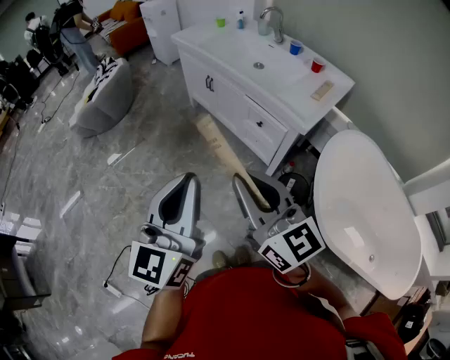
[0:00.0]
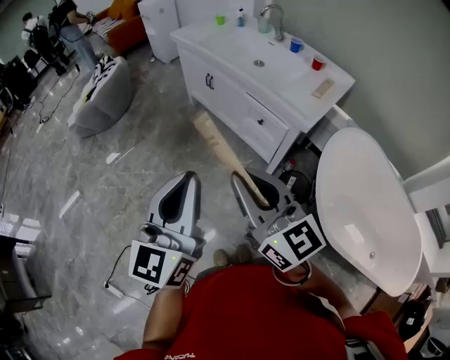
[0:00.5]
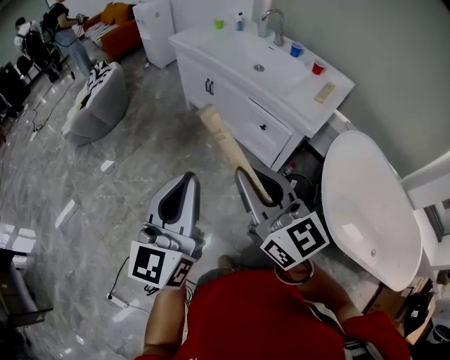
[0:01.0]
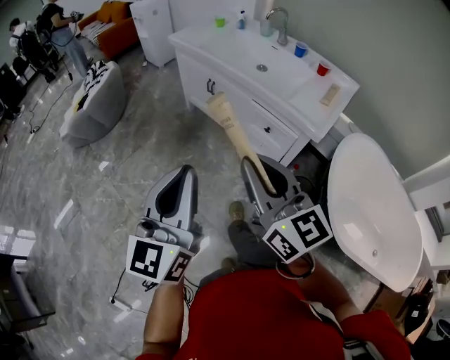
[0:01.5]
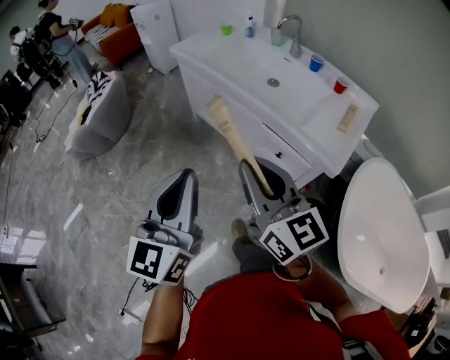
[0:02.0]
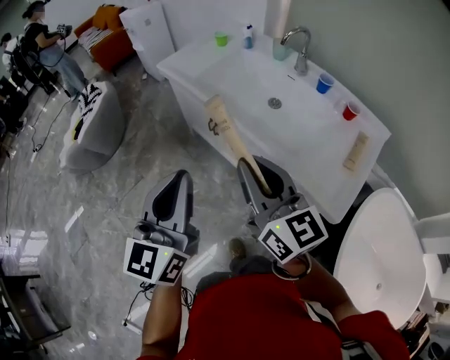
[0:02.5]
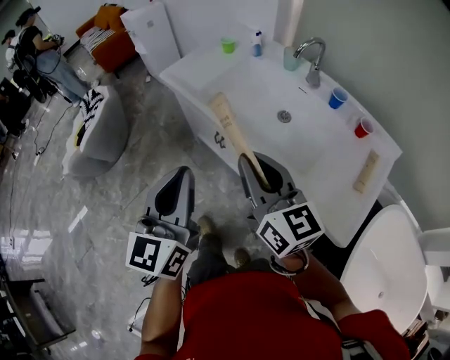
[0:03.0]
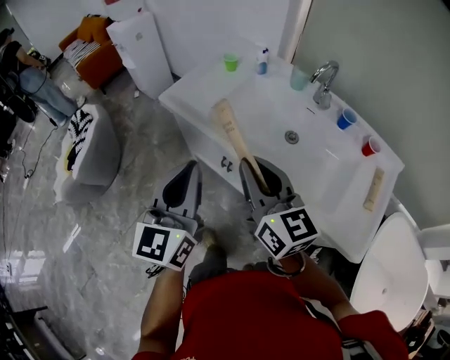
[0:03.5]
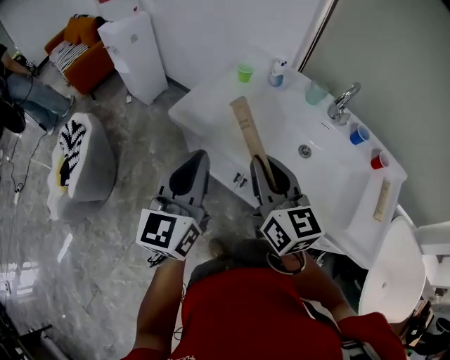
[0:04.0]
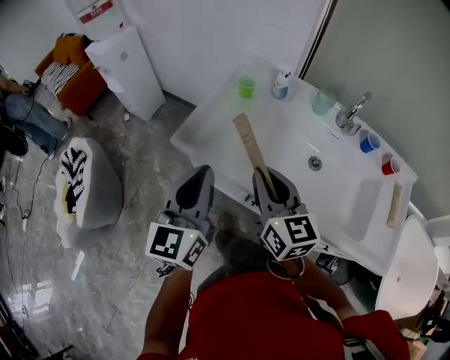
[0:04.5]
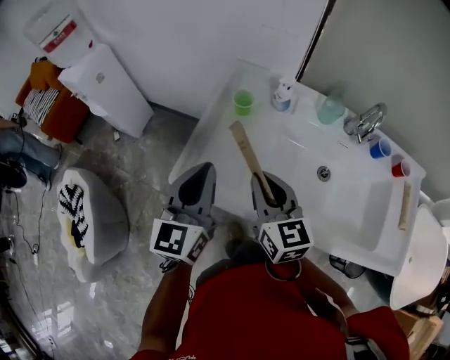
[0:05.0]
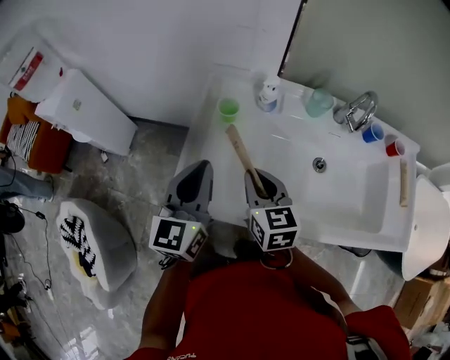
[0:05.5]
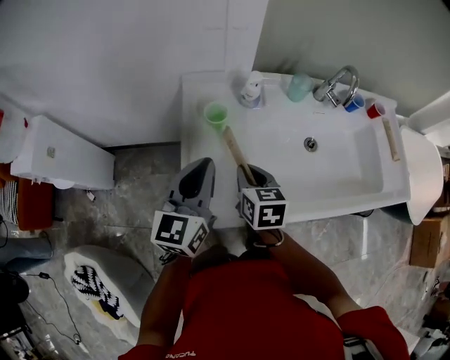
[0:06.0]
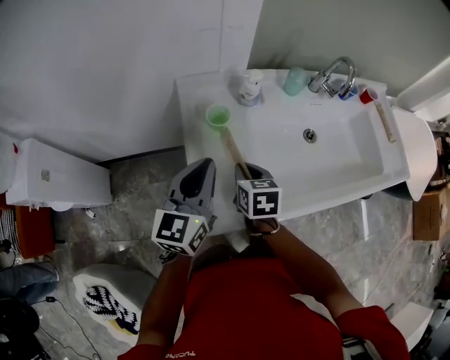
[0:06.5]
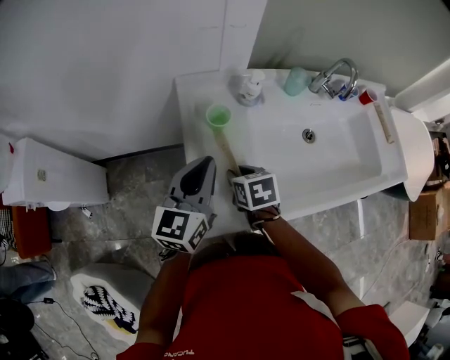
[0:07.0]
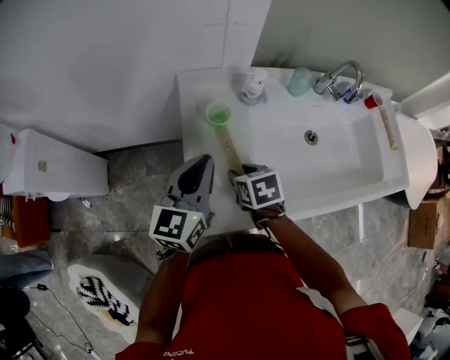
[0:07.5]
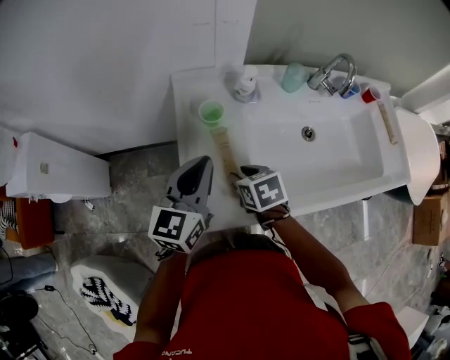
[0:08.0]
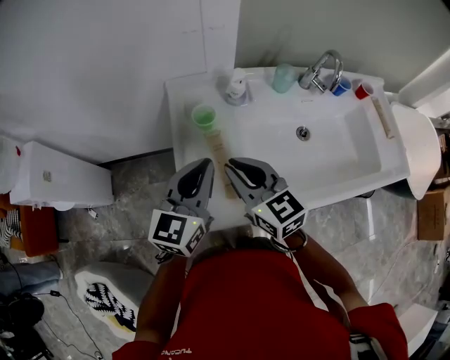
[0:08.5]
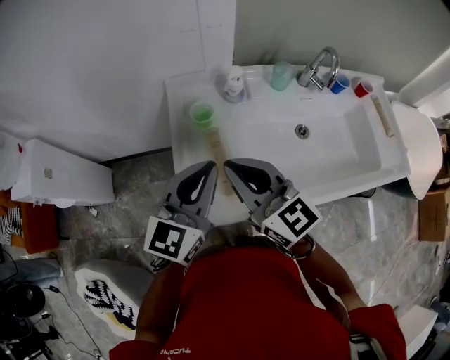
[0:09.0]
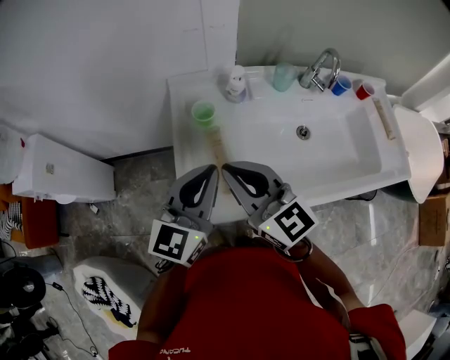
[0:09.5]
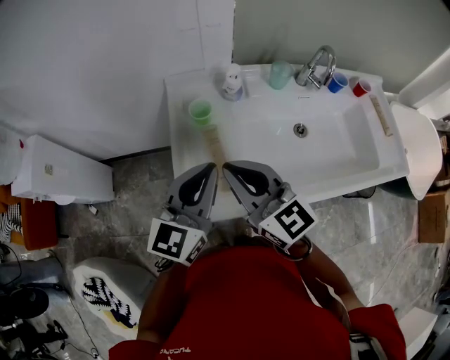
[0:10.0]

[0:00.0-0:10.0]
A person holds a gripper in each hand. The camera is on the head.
0:00.0 to 0:02.0: Both grippers travel together forward, roughly 25 cm.
0:02.0 to 0:04.0: The pair of grippers is taken forward, some 50 cm.
0:04.0 to 0:06.0: The left gripper moves approximately 35 cm, and swivels roughly 40 degrees. Meanwhile the right gripper changes place by about 35 cm, and tilts its fingers approximately 30 degrees downward.
0:06.0 to 0:08.0: The right gripper is displaced downward by some 5 cm, rotates roughly 20 degrees, and opens its fingers.
0:08.0 to 0:10.0: The right gripper is displaced upward by approximately 20 cm, points its fingers some 50 degrees further upward, and closes up. The left gripper shifts roughly 10 cm backward and upward.

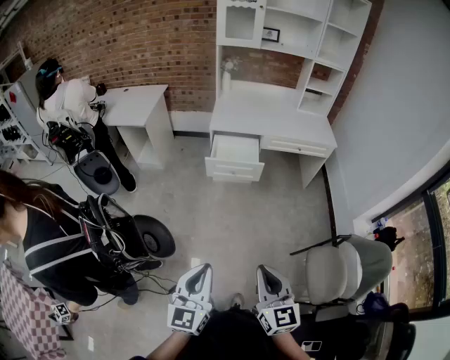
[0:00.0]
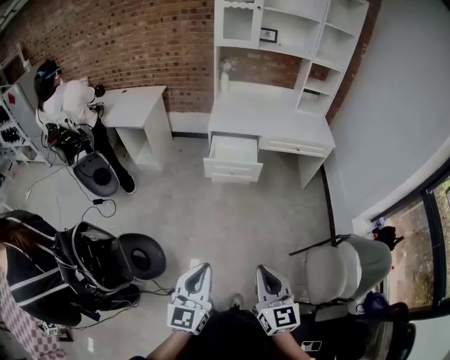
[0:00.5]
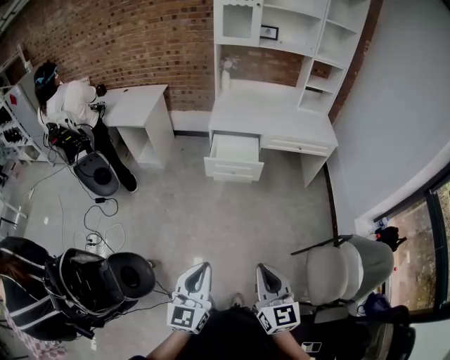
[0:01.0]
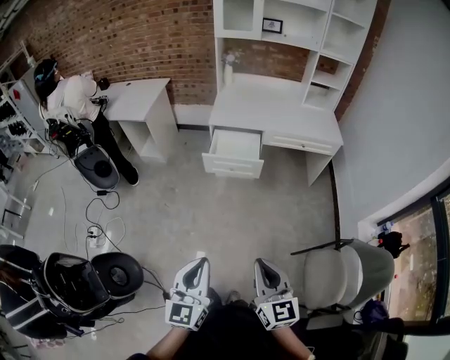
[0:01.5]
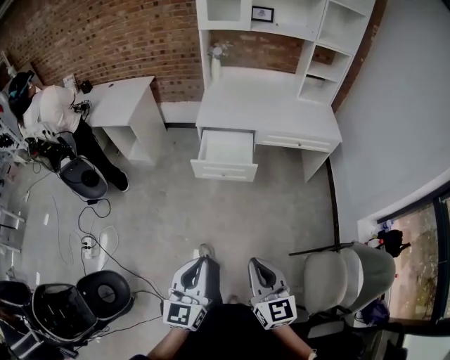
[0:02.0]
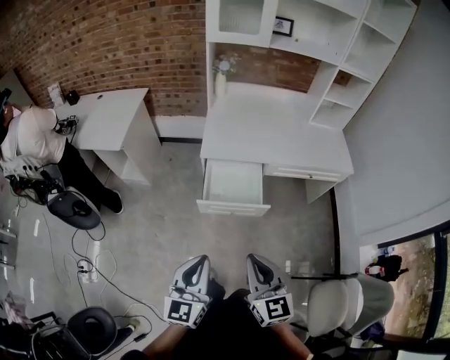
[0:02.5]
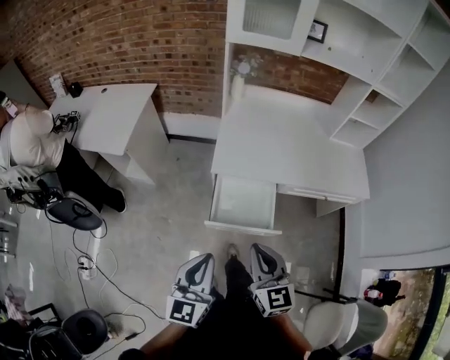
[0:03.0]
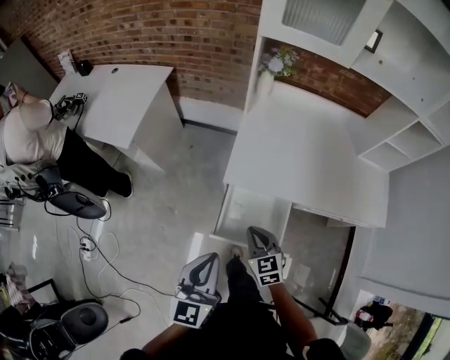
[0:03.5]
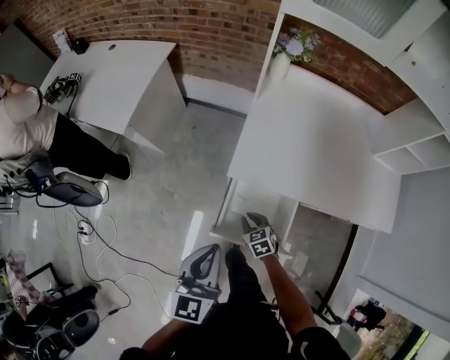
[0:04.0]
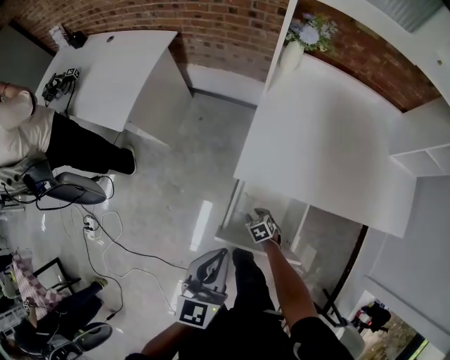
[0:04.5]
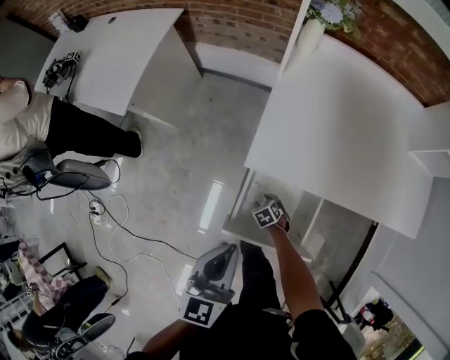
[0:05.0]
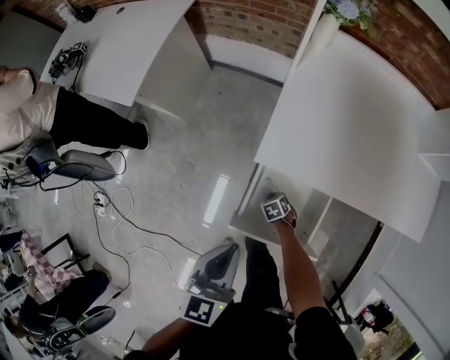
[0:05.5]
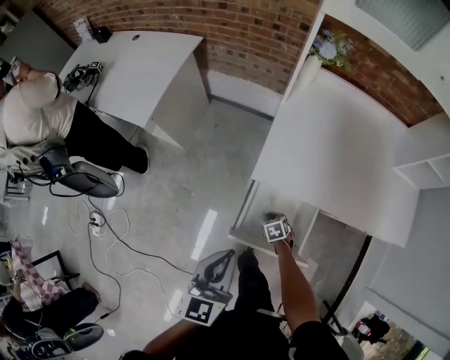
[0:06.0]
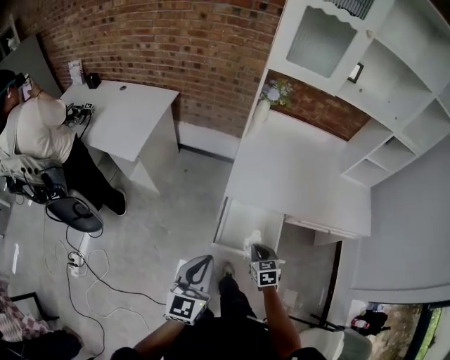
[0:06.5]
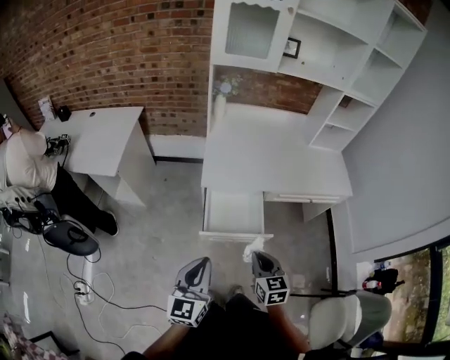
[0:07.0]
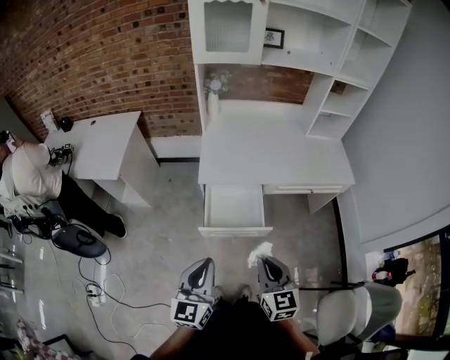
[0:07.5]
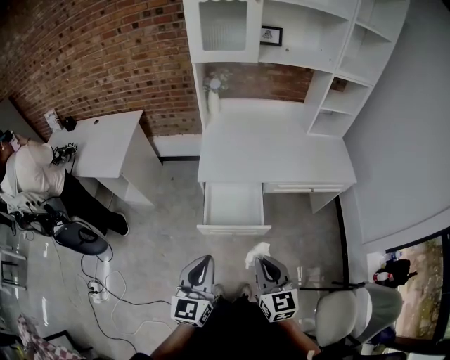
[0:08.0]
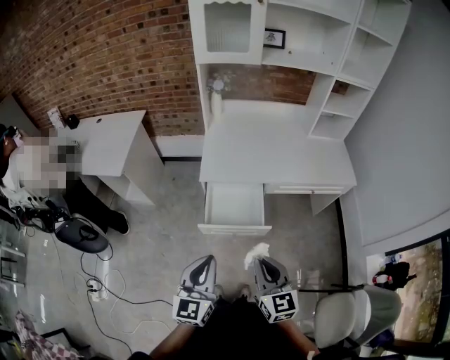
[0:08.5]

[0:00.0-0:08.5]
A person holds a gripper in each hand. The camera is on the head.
0:00.0 to 0:02.0: The left gripper travels forward and to the right by approximately 15 cm, while the right gripper goes about 15 cm forward.
0:02.0 to 0:04.0: The two grippers travel together, forward, roughly 70 cm. The right gripper heads downward, covering some 35 cm, and angles its fingers downward, by roughly 40 degrees.
0:04.0 to 0:06.5: The left gripper goes downward and returns, about 10 cm each way; the right gripper goes roughly 15 cm upward, swivels approximately 20 degrees, and opens, then closes once more.
0:06.5 to 0:08.5: The right gripper goes about 35 cm upward, backward and to the right, and tilts its fingers some 30 degrees upward. The left gripper heads backward and to the right, covering approximately 20 cm.

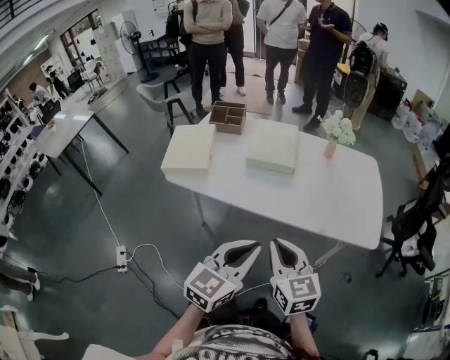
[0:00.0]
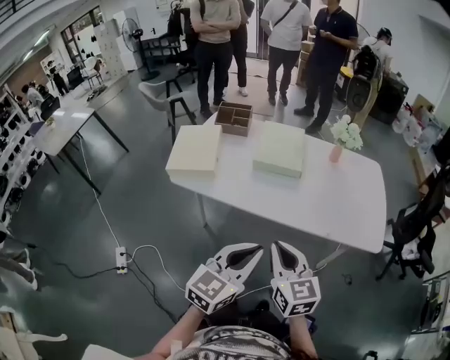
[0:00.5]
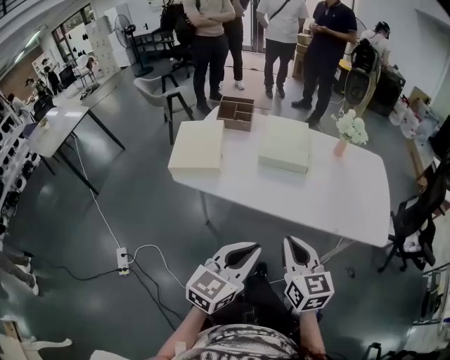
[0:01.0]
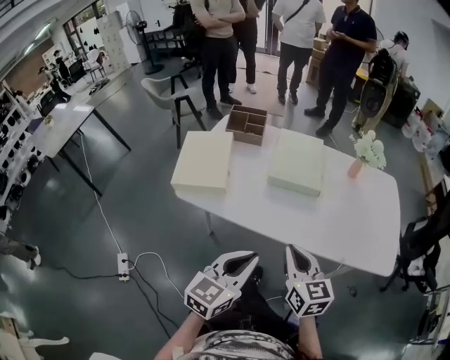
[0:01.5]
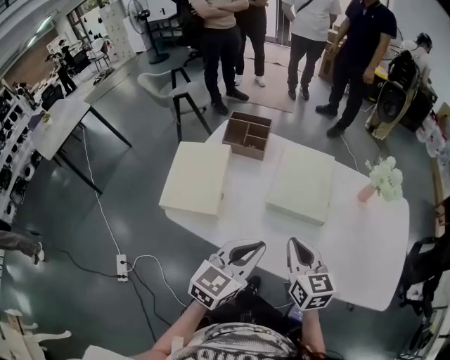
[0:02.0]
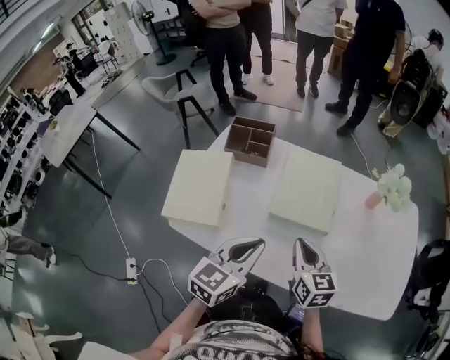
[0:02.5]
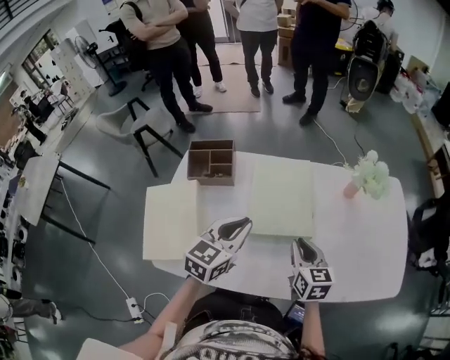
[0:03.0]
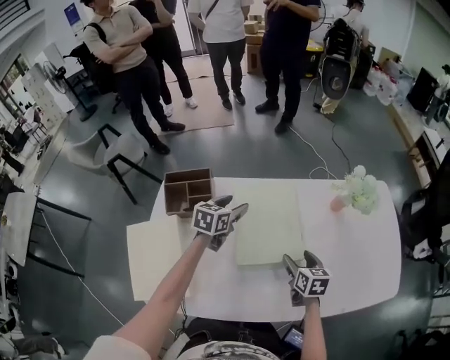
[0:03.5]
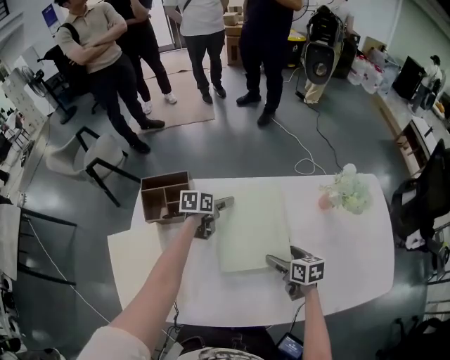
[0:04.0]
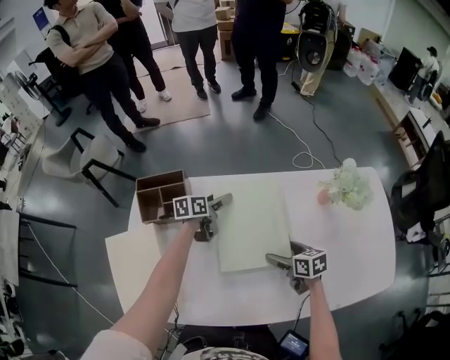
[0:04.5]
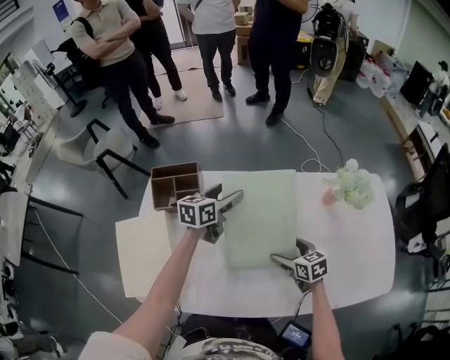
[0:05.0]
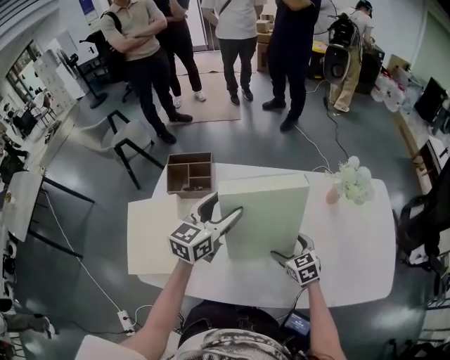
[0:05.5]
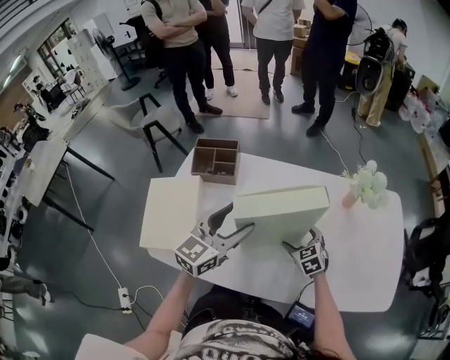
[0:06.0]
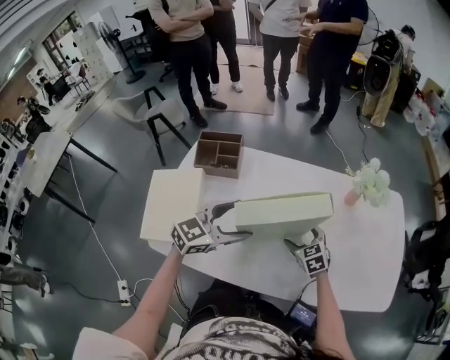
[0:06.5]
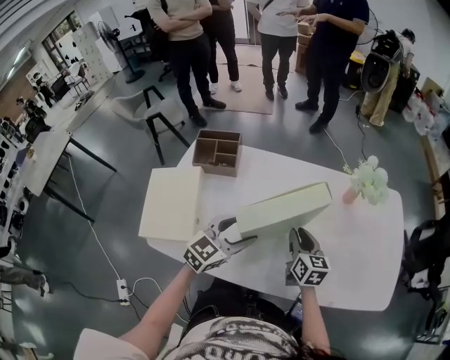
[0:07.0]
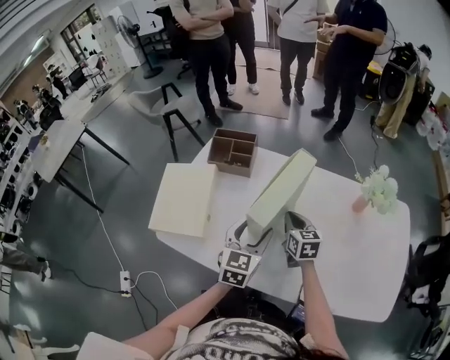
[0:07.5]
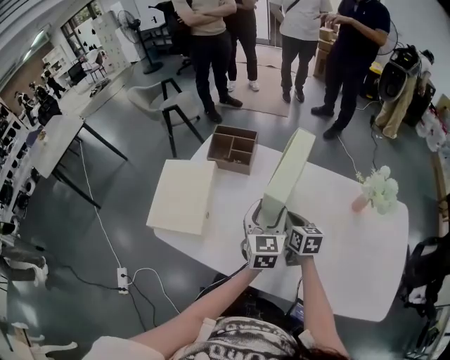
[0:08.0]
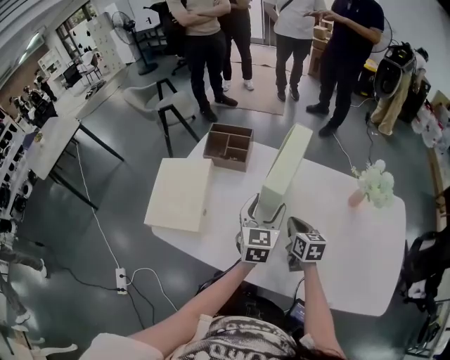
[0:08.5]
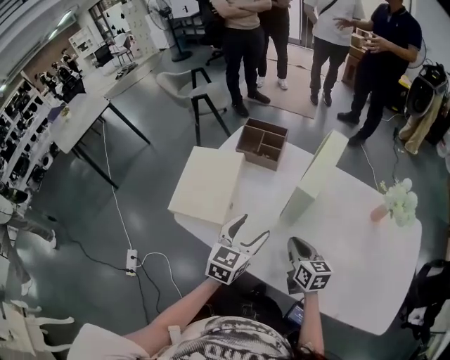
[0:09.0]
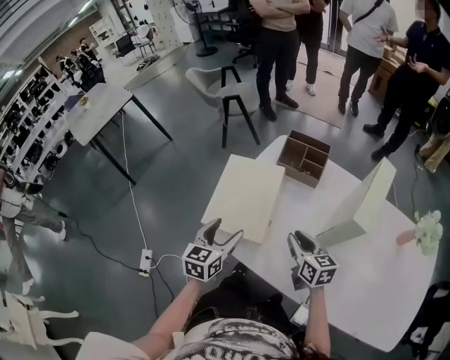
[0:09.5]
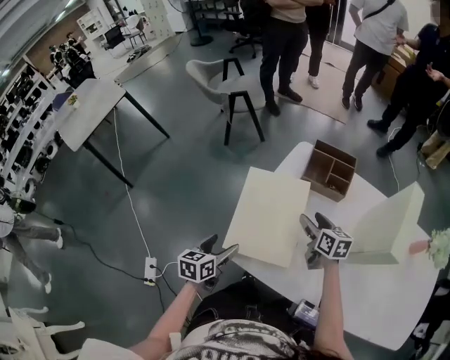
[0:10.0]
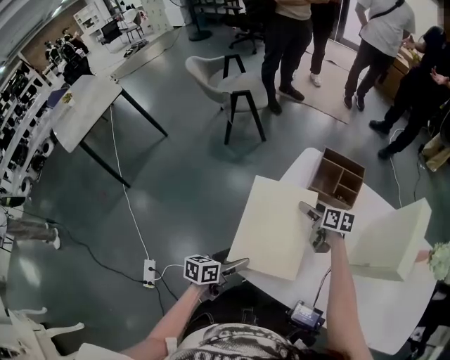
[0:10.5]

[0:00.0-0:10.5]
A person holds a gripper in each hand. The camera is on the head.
0:00.0 to 0:02.0: The right gripper goes about 30 cm forward; the left gripper heads forward and to the left, covering about 30 cm.
0:02.0 to 0:04.0: The left gripper heads forward and downward, covering approximately 50 cm, swivels about 40 degrees, and opens its fingers. Meanwhile the right gripper shifts roughly 30 cm forward, downward and to the right, turns by some 40 degrees, and opens up.
0:04.0 to 0:06.5: The left gripper is displaced backward and upward by approximately 35 cm, and rolls clockwise, seen from behind, by approximately 40 degrees, while the right gripper twists some 50 degrees counterclockwise, seen from behind.
0:06.5 to 0:08.5: The right gripper turns by about 30 degrees, and closes, while the left gripper ends up approximately 5 cm from where it was, and turns by some 50 degrees.
0:08.5 to 0:10.5: The left gripper moves to the left, some 40 cm, and rolls counterclockwise, seen from behind, by about 40 degrees. The right gripper is displaced to the left and forward by some 40 cm, changes its angle by about 20 degrees, and opens.
